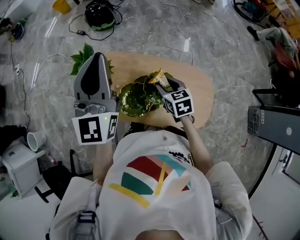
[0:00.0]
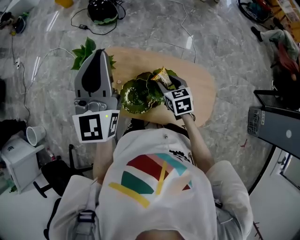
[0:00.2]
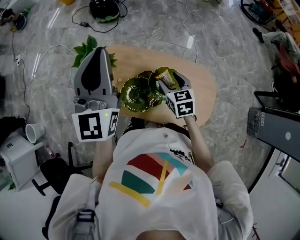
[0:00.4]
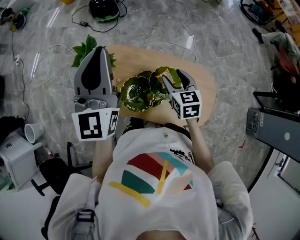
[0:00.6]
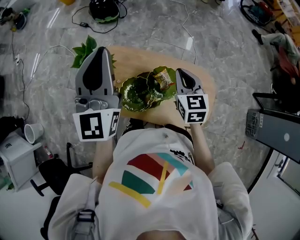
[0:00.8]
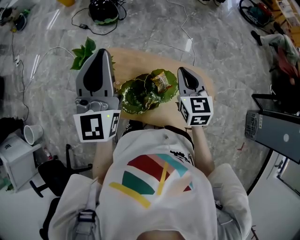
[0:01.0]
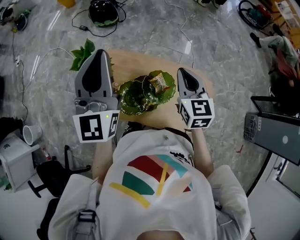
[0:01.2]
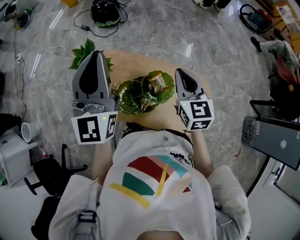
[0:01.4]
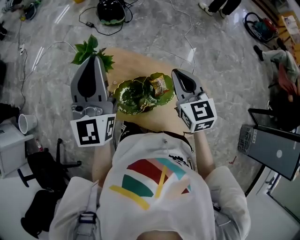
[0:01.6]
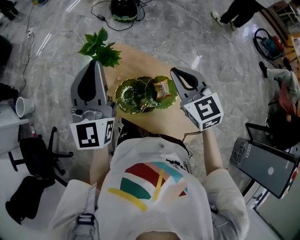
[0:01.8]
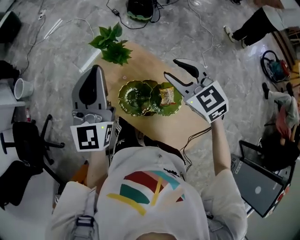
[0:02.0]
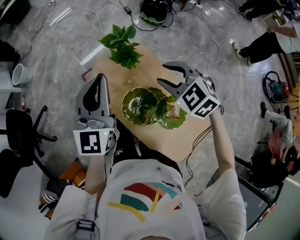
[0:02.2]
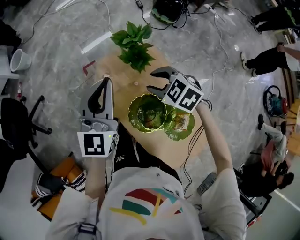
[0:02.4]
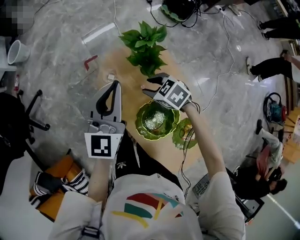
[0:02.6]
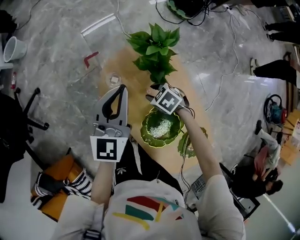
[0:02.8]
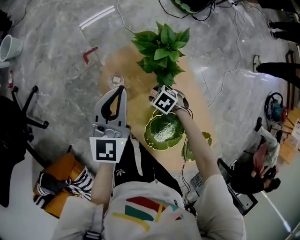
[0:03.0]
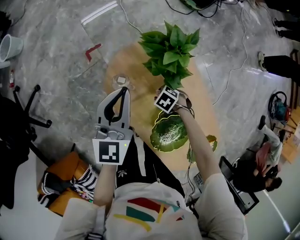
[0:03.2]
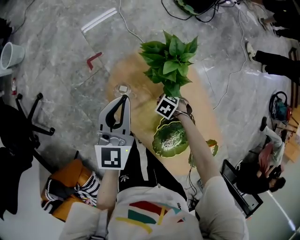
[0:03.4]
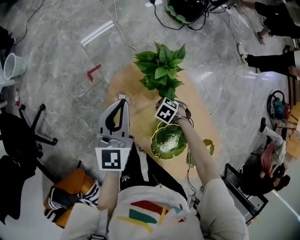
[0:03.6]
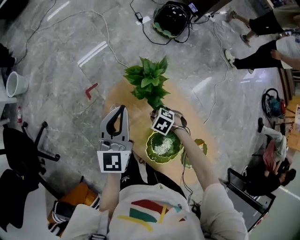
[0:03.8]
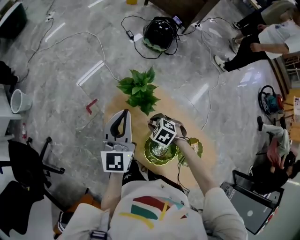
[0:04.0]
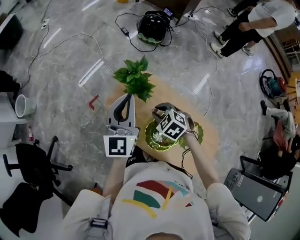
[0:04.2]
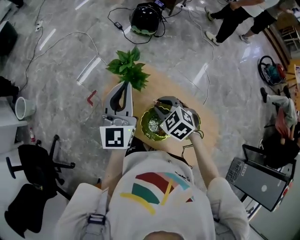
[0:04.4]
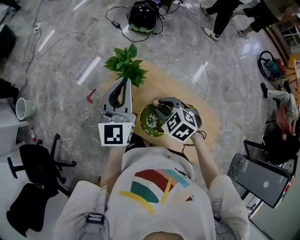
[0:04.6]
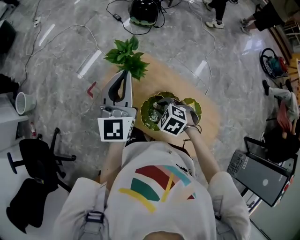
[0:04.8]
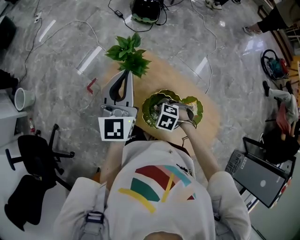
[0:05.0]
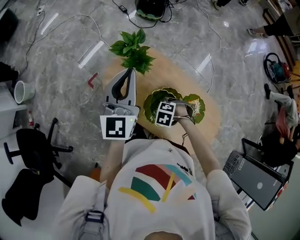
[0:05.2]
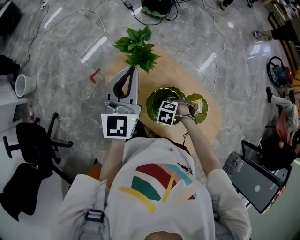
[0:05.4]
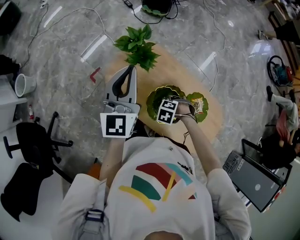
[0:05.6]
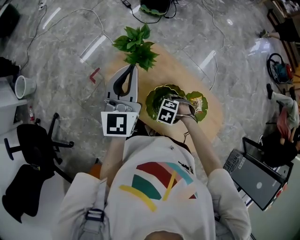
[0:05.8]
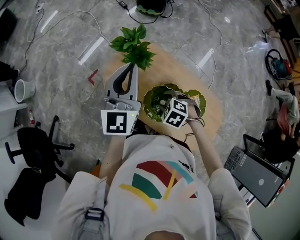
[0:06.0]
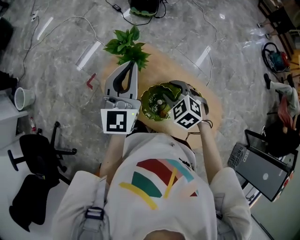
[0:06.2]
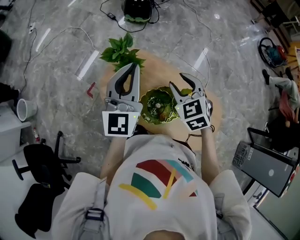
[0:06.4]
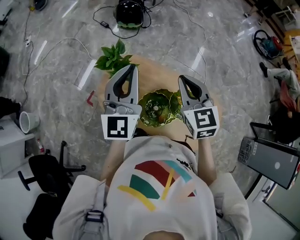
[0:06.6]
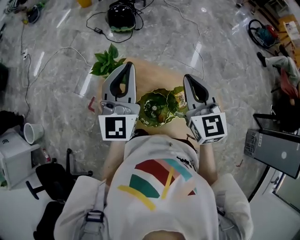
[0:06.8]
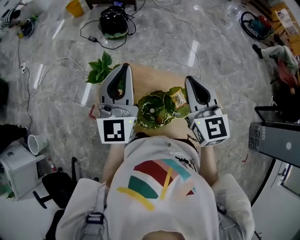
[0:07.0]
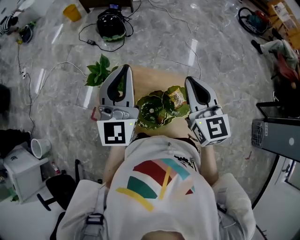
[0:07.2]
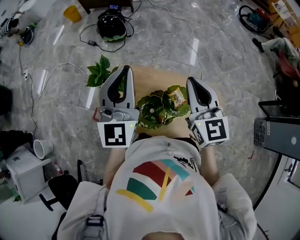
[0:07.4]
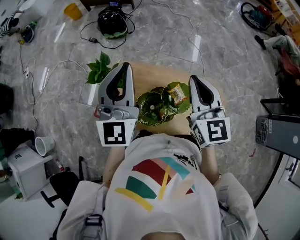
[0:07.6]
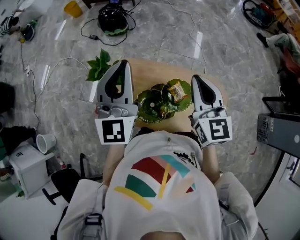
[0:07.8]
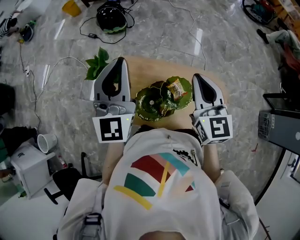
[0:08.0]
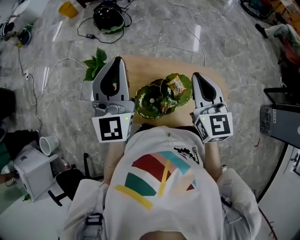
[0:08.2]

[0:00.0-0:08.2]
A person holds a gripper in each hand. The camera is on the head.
0:00.0 to 0:01.6: The right gripper moves upward, some 15 cm, swivels approximately 30 degrees, and closes up.
0:01.6 to 0:03.2: Both grippers move downward, about 40 cm. The left gripper swivels approximately 40 degrees. Meanwhile the right gripper points its fingers some 60 degrees further downward, and opens.
0:03.2 to 0:05.0: The two grippers go approximately 20 cm upward. The left gripper swivels some 30 degrees.
0:05.0 to 0:06.6: The right gripper travels upward by some 25 cm, and angles its fingers upward, by roughly 60 degrees. The left gripper ends up approximately 10 cm from where it was.
0:06.6 to 0:08.2: The left gripper is displaced to the right by some 10 cm. The right gripper goes about 15 cm to the right, and turns by roughly 20 degrees.

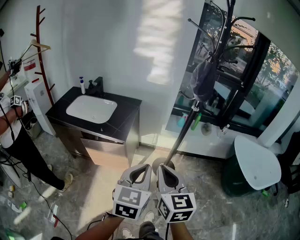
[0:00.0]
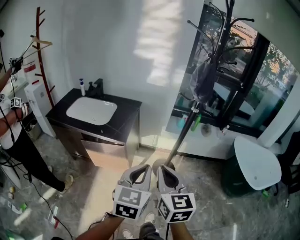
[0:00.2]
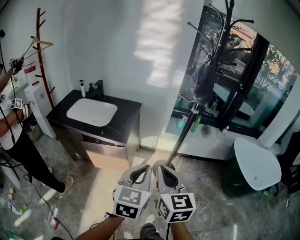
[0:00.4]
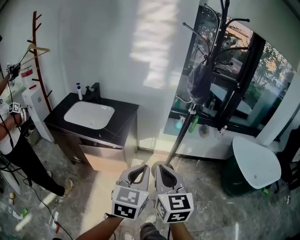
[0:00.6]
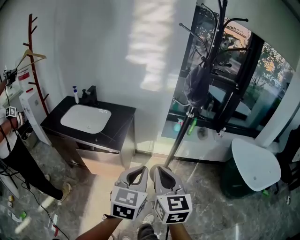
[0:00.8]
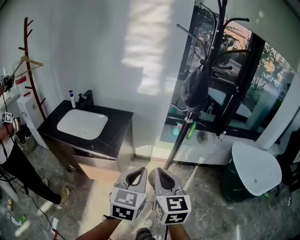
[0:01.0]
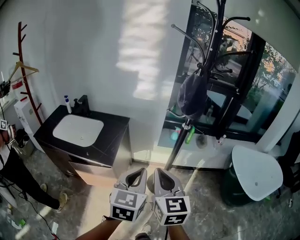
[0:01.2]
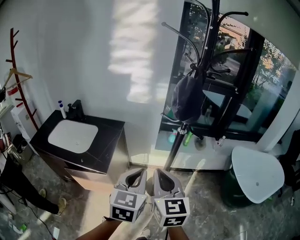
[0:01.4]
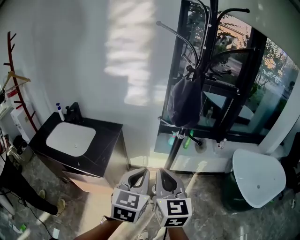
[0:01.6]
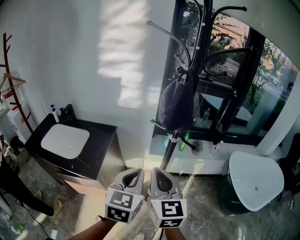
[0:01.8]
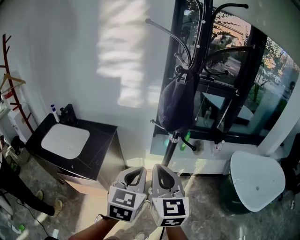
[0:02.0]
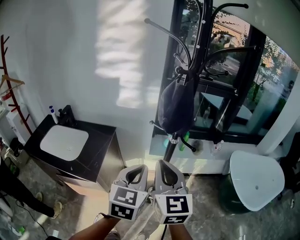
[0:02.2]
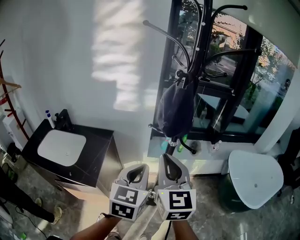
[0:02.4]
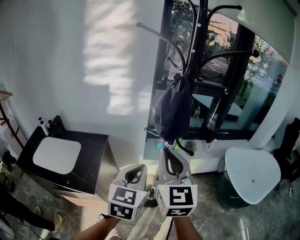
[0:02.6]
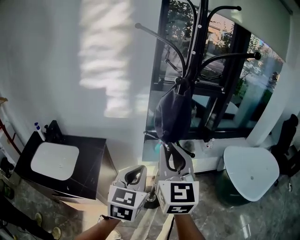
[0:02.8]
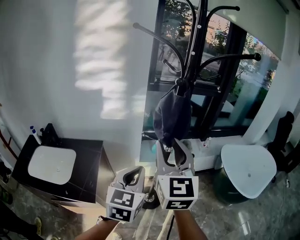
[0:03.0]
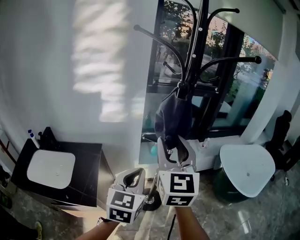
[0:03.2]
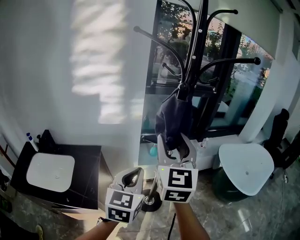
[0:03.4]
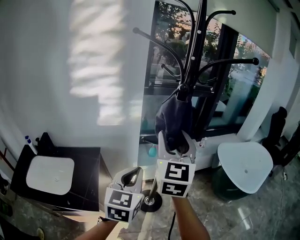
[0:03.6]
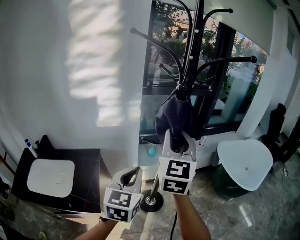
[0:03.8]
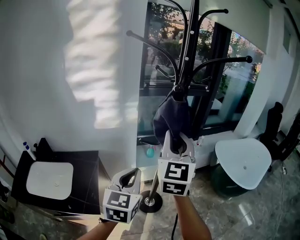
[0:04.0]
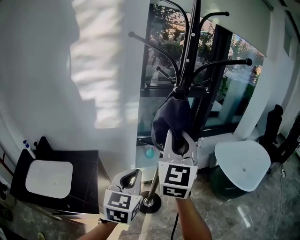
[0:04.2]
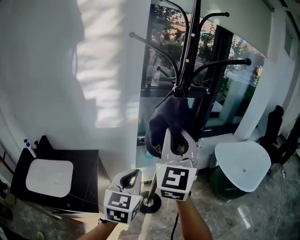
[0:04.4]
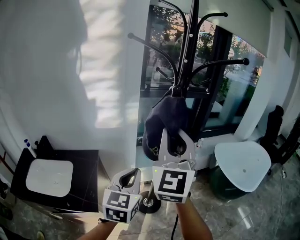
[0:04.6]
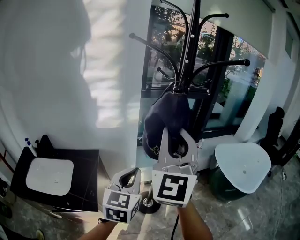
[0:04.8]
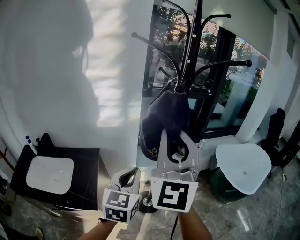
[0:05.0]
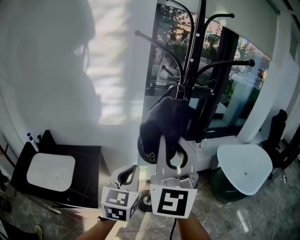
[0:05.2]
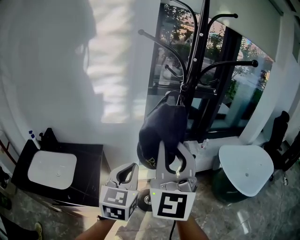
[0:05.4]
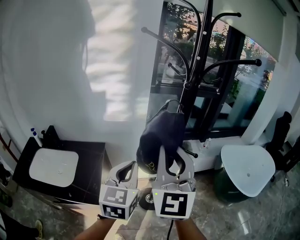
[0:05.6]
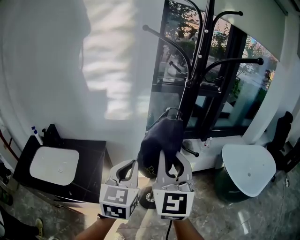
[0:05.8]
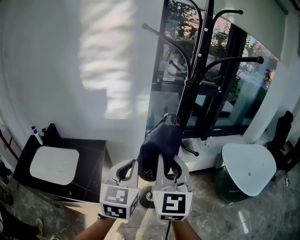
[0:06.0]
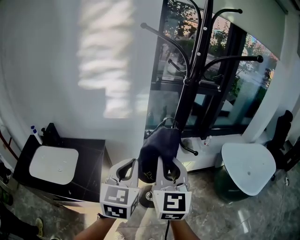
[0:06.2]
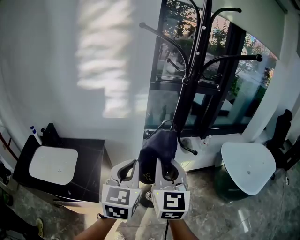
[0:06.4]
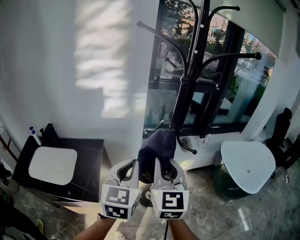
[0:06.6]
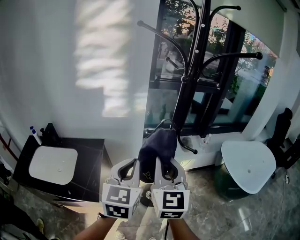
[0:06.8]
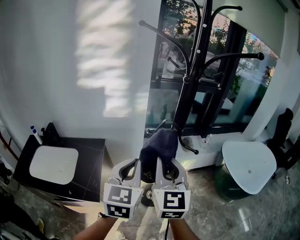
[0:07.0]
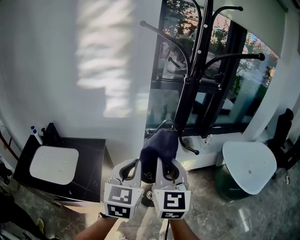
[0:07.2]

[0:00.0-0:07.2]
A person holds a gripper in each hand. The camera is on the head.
0:00.0 to 0:01.4: The two grippers go some 15 cm forward.
0:01.4 to 0:02.8: The left gripper is displaced forward by roughly 15 cm. The right gripper goes about 20 cm forward and upward, and rotates about 20 degrees.
0:02.8 to 0:04.4: The right gripper shifts roughly 5 cm upward, changes its angle by some 30 degrees, and opens, then closes once more.
0:04.4 to 0:05.8: The right gripper moves backward and downward, some 10 cm.
0:05.8 to 0:07.2: The right gripper is displaced downward by some 5 cm.

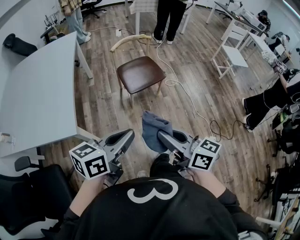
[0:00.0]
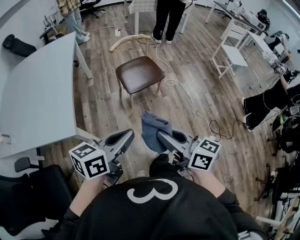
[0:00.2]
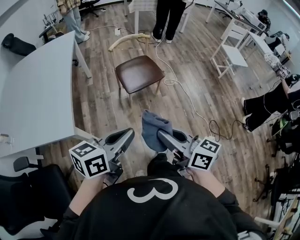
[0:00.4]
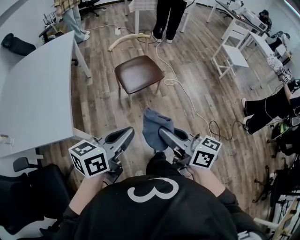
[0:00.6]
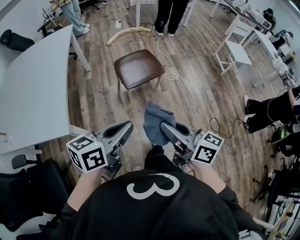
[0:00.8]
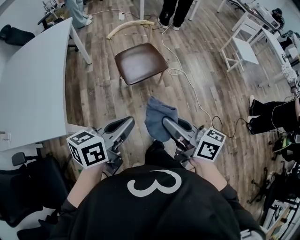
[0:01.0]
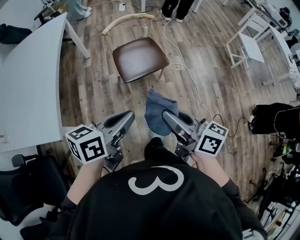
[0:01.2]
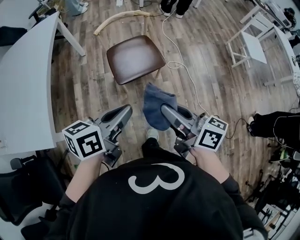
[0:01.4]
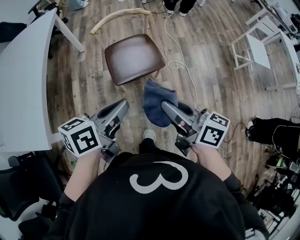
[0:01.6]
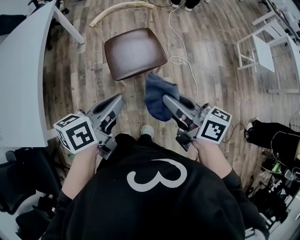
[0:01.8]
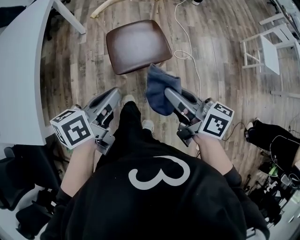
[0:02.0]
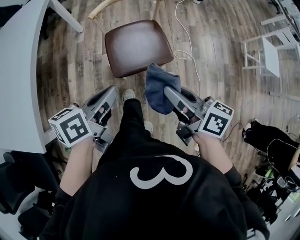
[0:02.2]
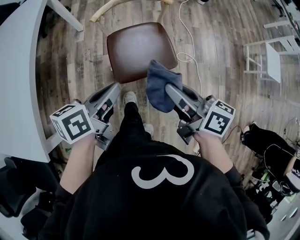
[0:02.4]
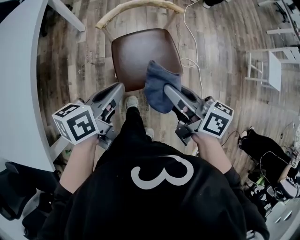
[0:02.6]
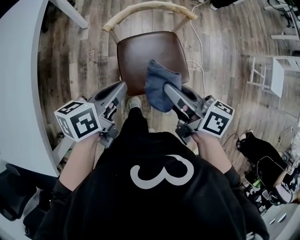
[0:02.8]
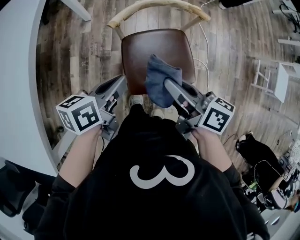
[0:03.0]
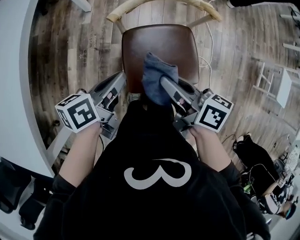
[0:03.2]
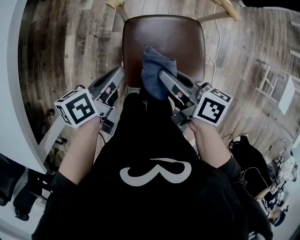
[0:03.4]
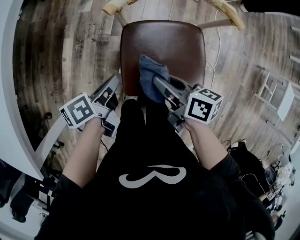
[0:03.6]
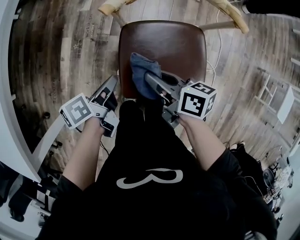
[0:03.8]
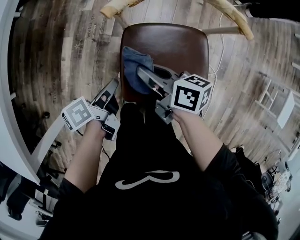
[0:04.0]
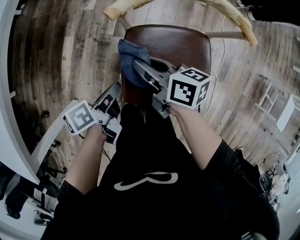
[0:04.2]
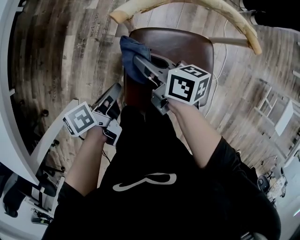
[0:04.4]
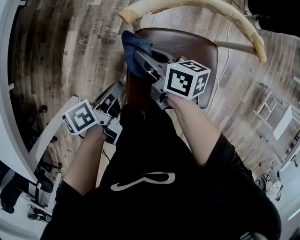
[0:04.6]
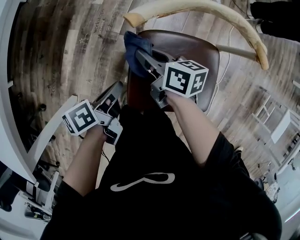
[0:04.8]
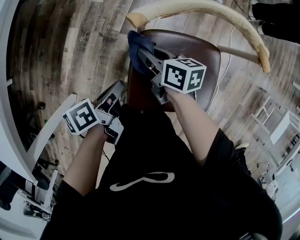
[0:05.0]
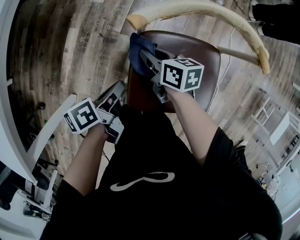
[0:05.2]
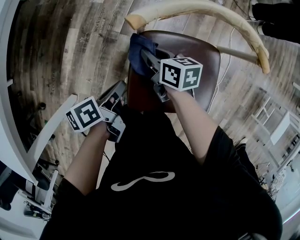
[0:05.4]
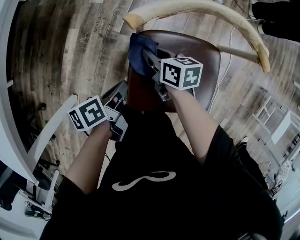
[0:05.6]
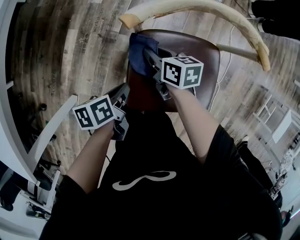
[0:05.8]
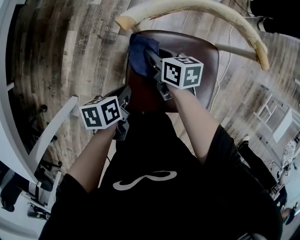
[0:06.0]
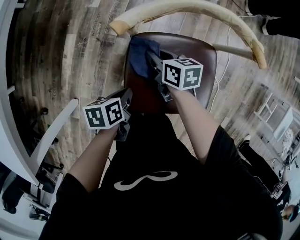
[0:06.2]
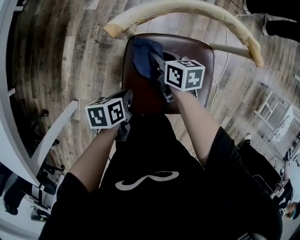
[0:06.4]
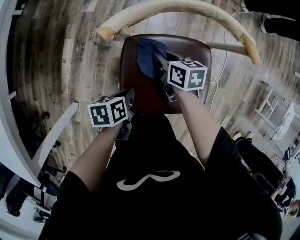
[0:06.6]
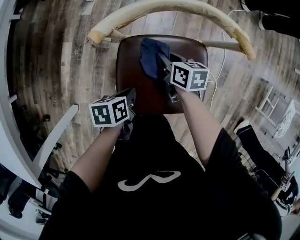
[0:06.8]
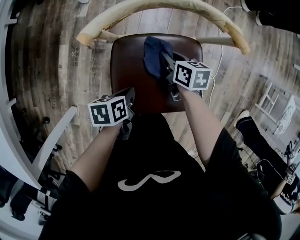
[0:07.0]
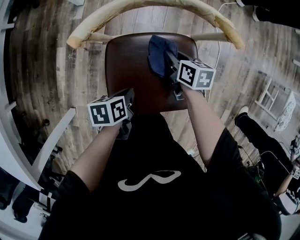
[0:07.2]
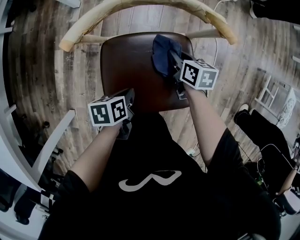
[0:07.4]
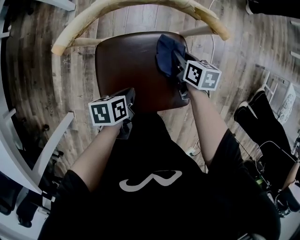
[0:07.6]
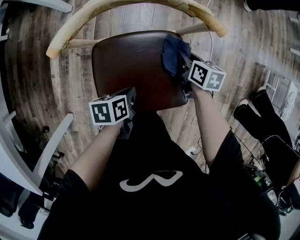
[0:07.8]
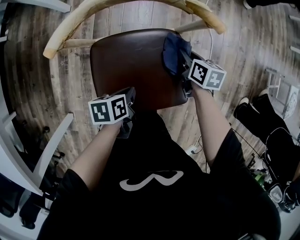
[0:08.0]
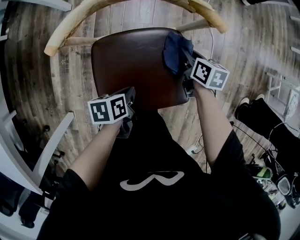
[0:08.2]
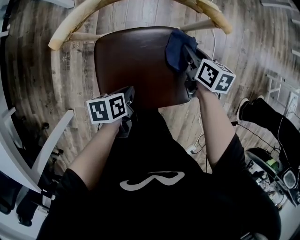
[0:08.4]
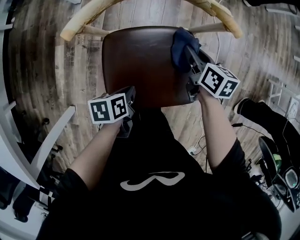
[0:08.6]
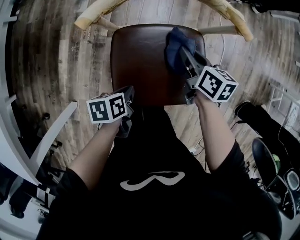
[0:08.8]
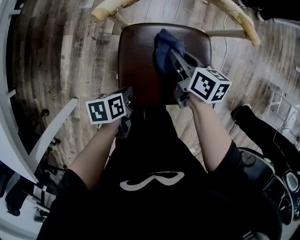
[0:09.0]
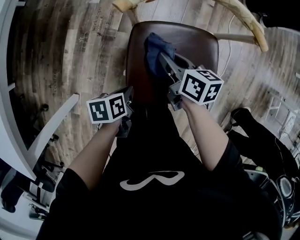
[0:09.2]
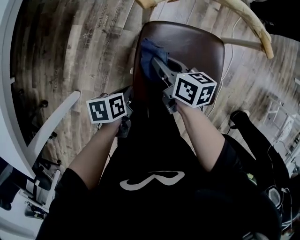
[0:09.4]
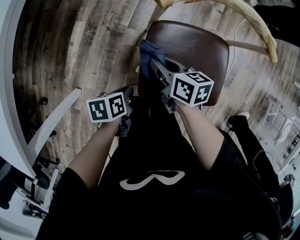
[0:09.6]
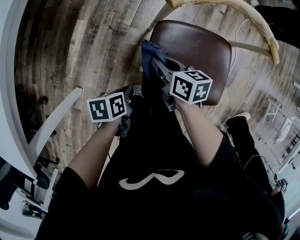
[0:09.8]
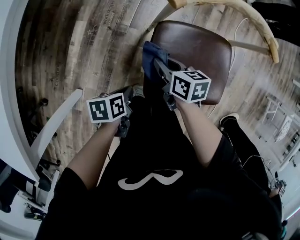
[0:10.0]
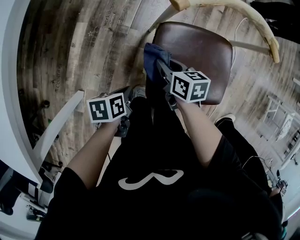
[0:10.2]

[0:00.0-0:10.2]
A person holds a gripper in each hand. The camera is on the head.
0:00.0 to 0:01.4: The right gripper moves about 25 cm.
0:01.4 to 0:03.0: The right gripper moves roughly 40 cm.
0:03.0 to 0:04.4: The right gripper shifts about 20 cm downward.
0:04.4 to 0:05.8: The right gripper is displaced downward by roughly 10 cm.
0:05.8 to 0:07.2: The right gripper ends up approximately 20 cm from where it was.
0:07.2 to 0:08.8: The right gripper travels upward by some 5 cm.
0:08.8 to 0:10.2: The right gripper ends up approximately 25 cm from where it was.
